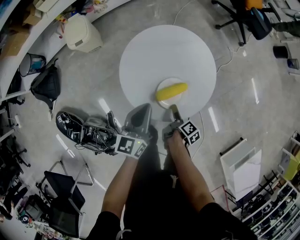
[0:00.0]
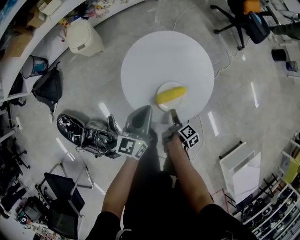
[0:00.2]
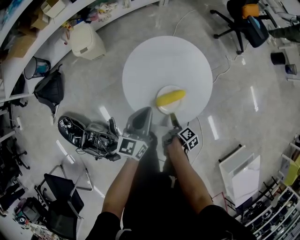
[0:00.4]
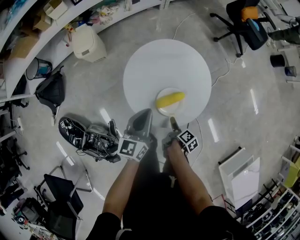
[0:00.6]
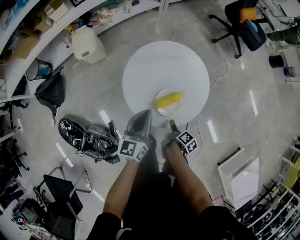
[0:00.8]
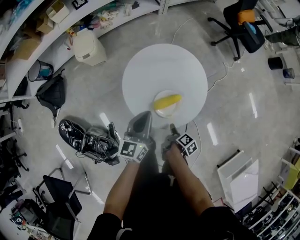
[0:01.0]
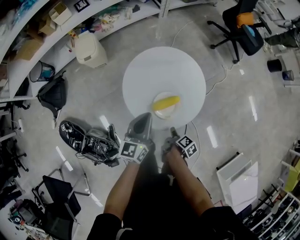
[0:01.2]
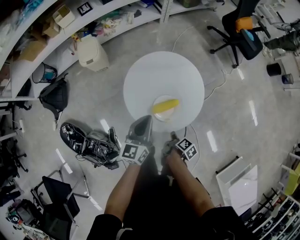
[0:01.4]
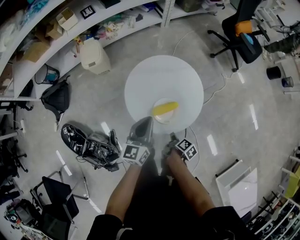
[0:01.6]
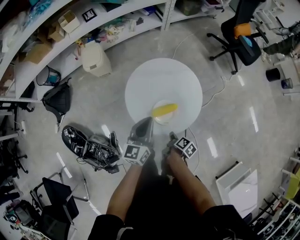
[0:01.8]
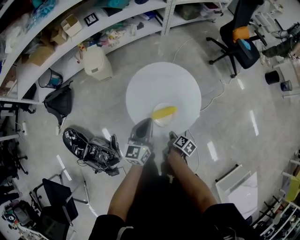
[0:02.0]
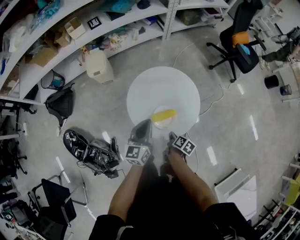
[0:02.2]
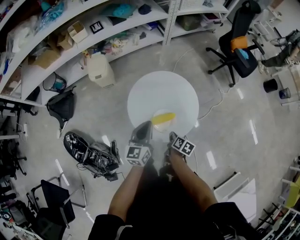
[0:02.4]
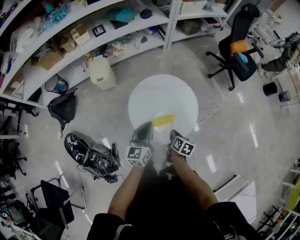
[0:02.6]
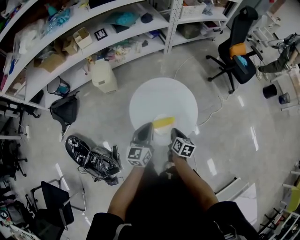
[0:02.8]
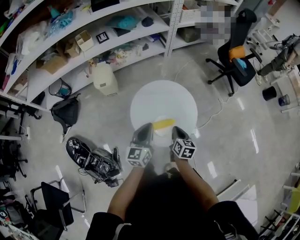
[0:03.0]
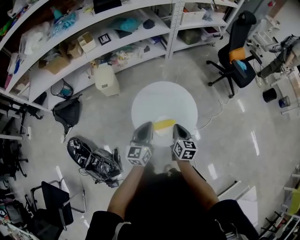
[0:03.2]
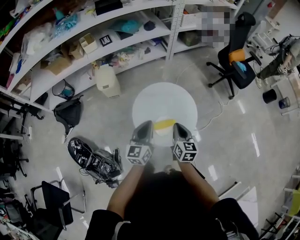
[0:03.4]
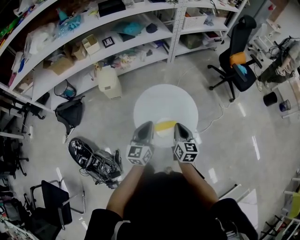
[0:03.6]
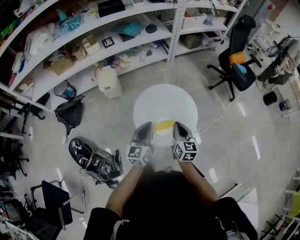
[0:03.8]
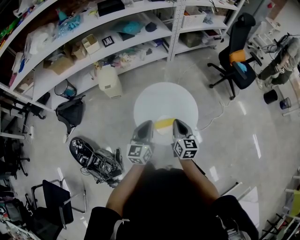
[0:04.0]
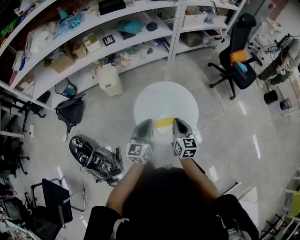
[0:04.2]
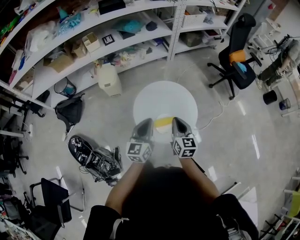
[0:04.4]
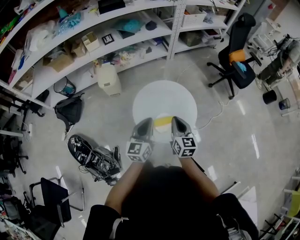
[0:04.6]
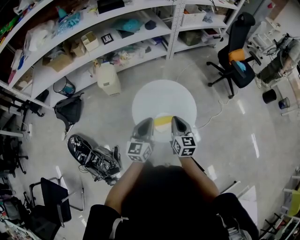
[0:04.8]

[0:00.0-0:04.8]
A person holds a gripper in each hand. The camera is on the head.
0:00.0 to 0:01.6: The left gripper is displaced upward by approximately 5 cm.
0:01.6 to 0:03.2: The left gripper moves upward, some 10 cm.

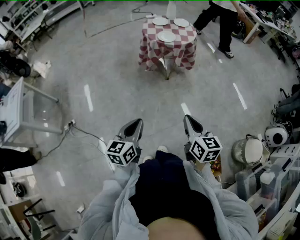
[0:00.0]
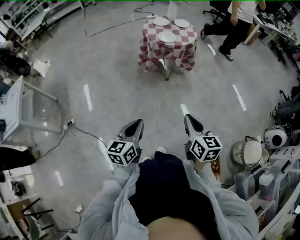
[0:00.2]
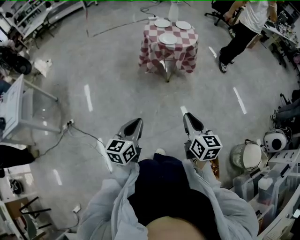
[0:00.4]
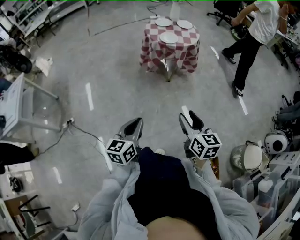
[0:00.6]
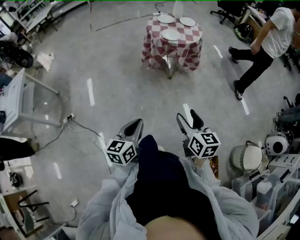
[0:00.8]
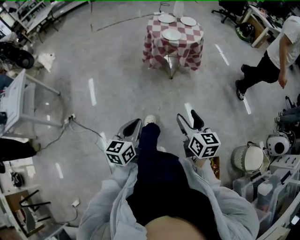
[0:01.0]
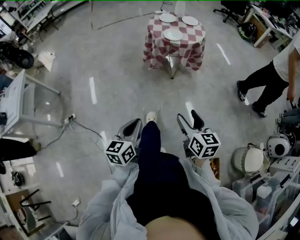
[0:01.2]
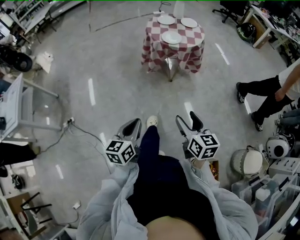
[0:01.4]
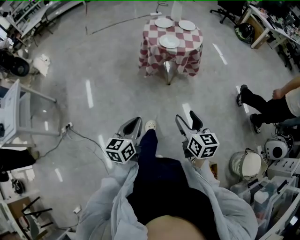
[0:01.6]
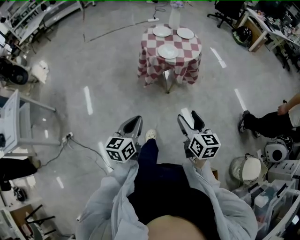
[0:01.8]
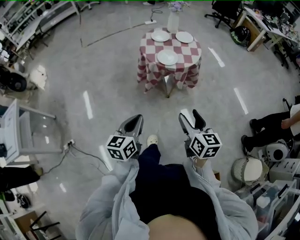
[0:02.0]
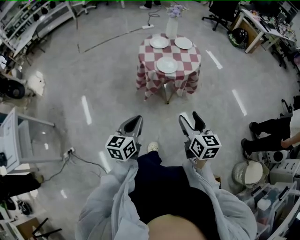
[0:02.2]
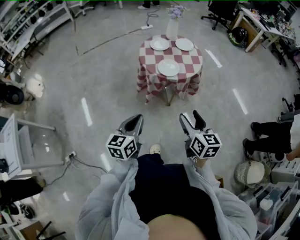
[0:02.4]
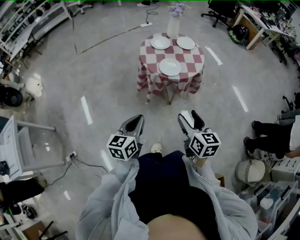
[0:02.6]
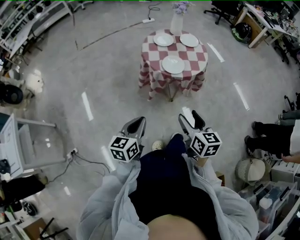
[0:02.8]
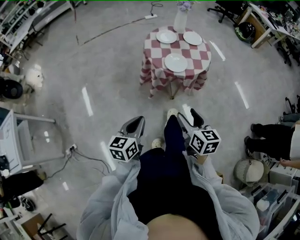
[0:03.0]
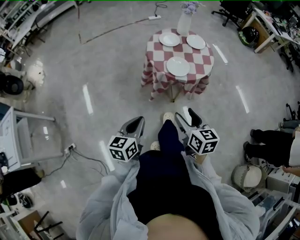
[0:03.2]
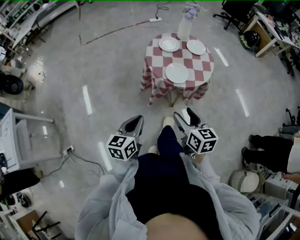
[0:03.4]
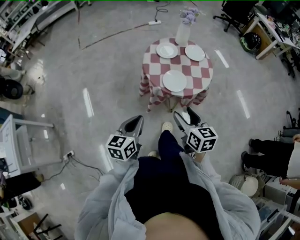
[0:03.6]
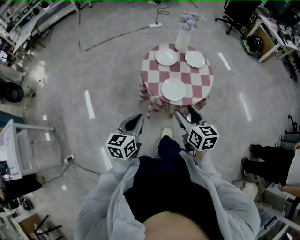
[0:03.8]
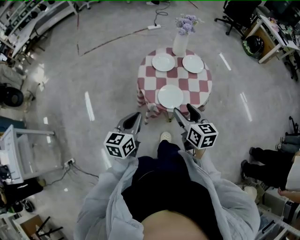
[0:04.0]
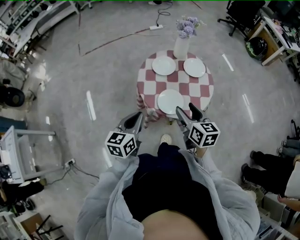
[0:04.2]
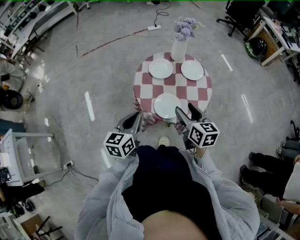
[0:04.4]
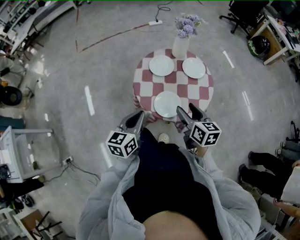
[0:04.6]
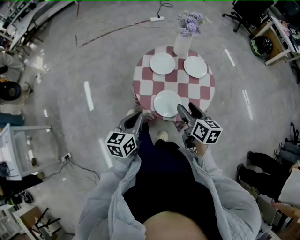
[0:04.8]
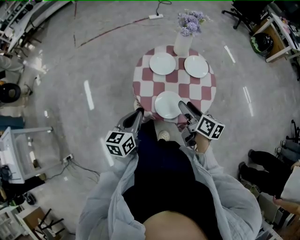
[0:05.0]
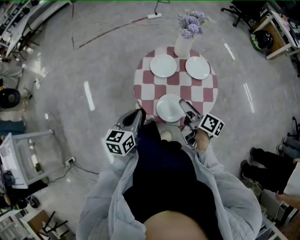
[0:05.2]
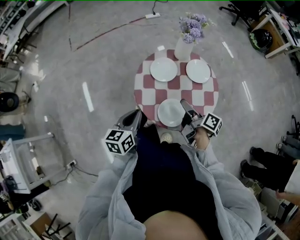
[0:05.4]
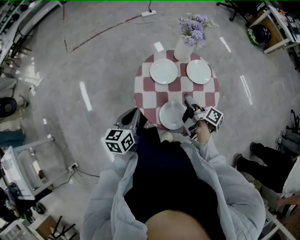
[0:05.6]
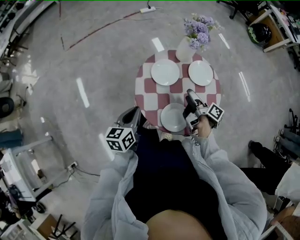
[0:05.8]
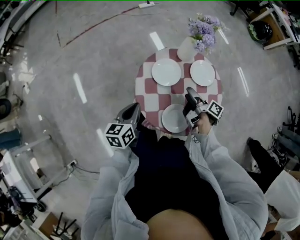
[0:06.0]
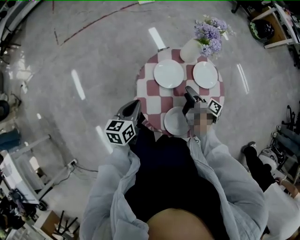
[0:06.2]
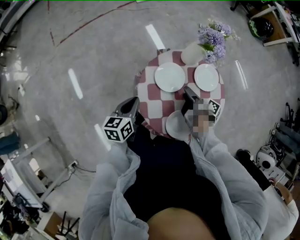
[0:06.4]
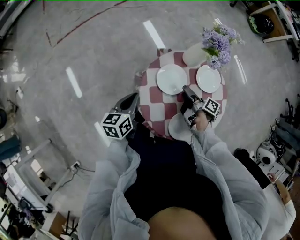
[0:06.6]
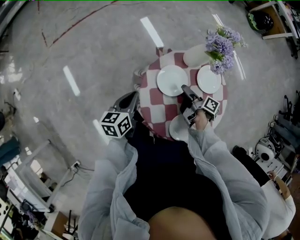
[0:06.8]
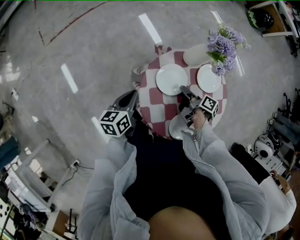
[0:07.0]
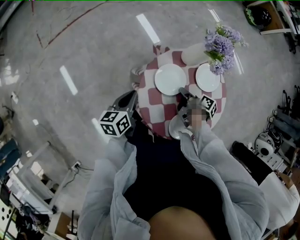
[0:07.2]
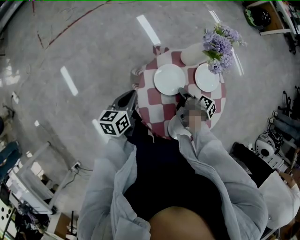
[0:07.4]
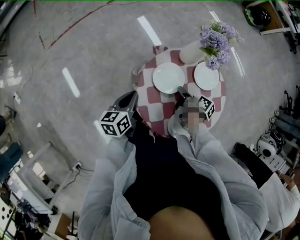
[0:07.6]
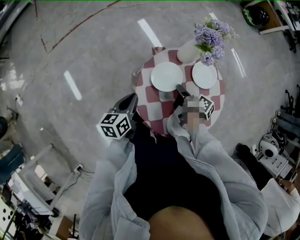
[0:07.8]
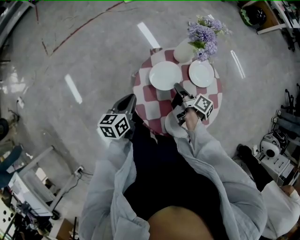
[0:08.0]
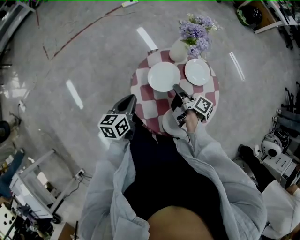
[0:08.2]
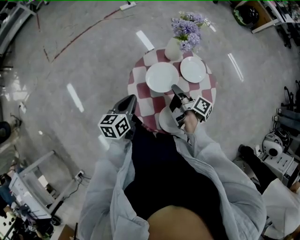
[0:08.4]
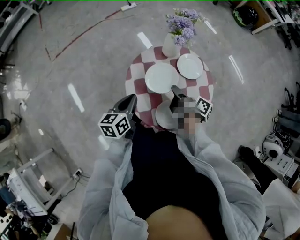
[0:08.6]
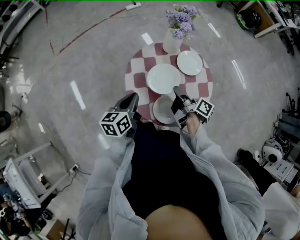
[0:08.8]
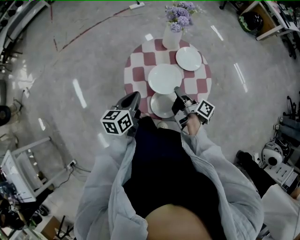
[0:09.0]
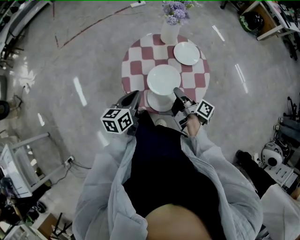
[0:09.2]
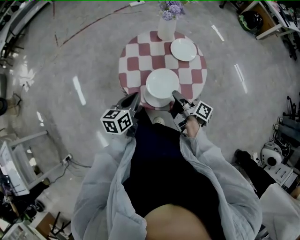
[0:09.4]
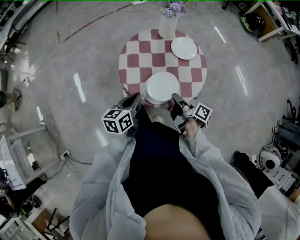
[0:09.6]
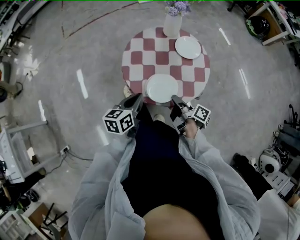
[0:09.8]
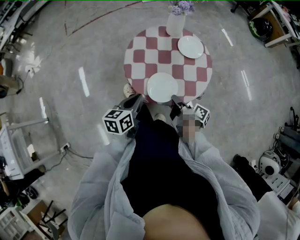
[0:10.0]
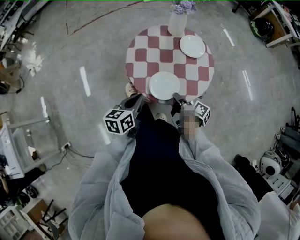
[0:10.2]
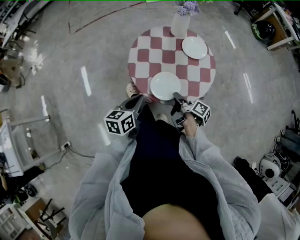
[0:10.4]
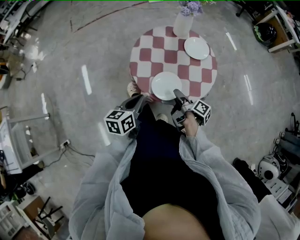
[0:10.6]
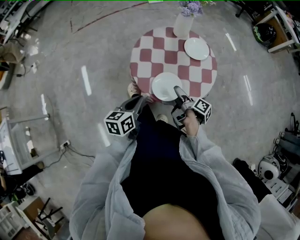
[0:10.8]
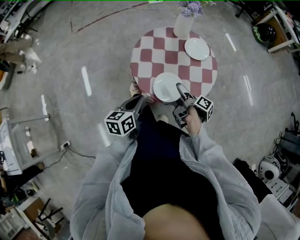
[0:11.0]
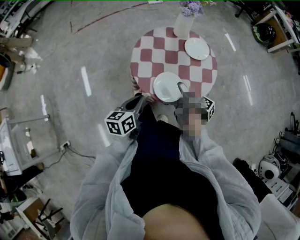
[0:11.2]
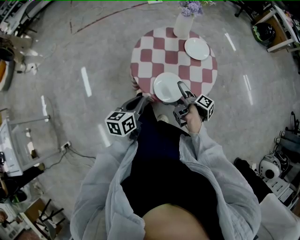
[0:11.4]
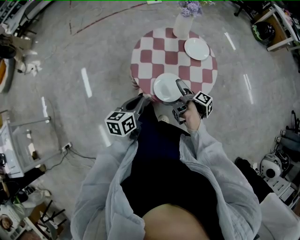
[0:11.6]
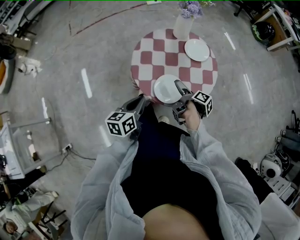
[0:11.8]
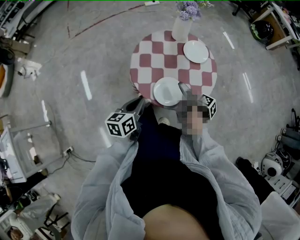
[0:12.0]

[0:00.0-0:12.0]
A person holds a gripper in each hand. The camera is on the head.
0:00.0 to 0:01.6: The left gripper ends up roughly 15 cm from where it was.
0:01.6 to 0:03.0: The left gripper shifts by about 25 cm.
0:03.0 to 0:04.4: The left gripper moves roughly 30 cm.
0:04.4 to 0:06.0: The left gripper moves approximately 20 cm.
0:06.0 to 0:07.6: The left gripper shifts by roughly 10 cm.
0:07.6 to 0:09.0: The left gripper shifts by about 15 cm.
0:09.0 to 0:10.4: The left gripper moves approximately 10 cm.

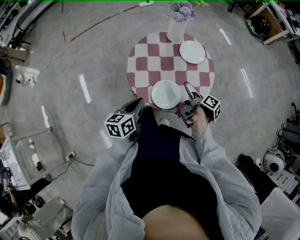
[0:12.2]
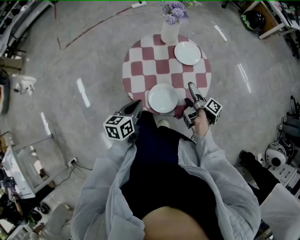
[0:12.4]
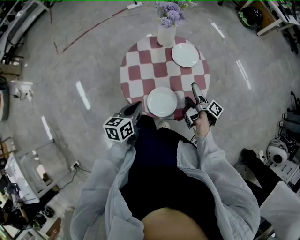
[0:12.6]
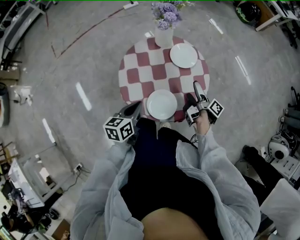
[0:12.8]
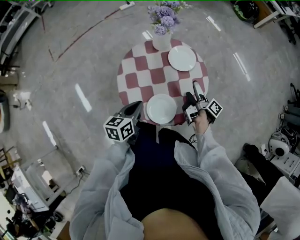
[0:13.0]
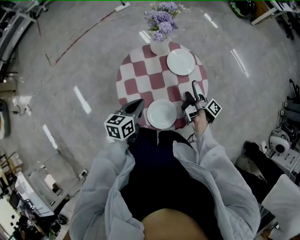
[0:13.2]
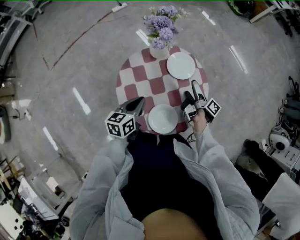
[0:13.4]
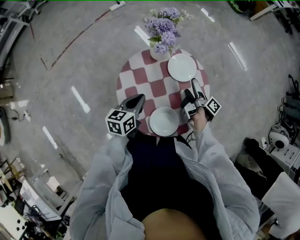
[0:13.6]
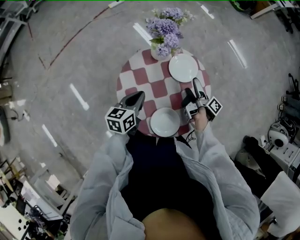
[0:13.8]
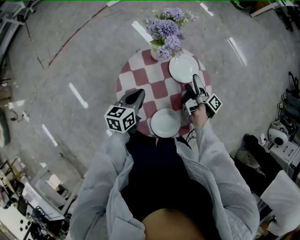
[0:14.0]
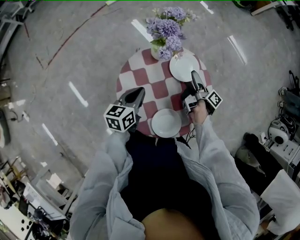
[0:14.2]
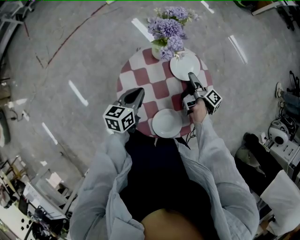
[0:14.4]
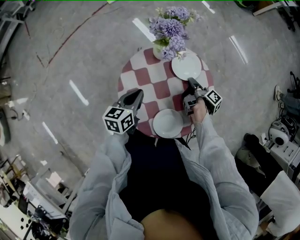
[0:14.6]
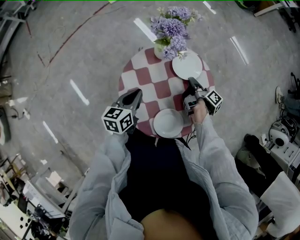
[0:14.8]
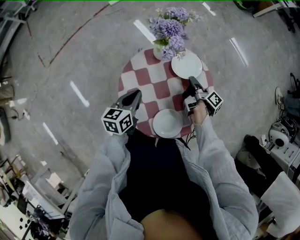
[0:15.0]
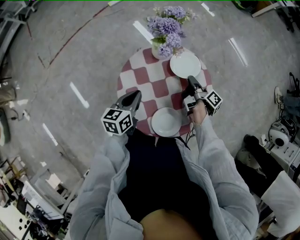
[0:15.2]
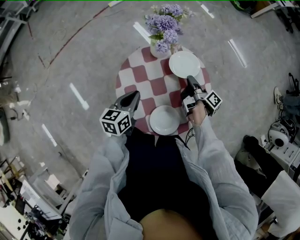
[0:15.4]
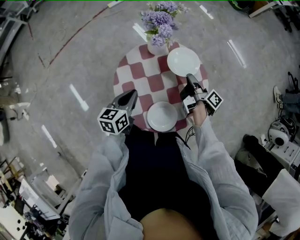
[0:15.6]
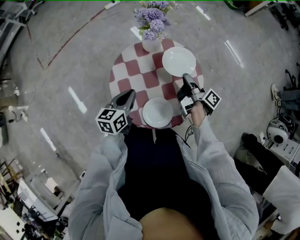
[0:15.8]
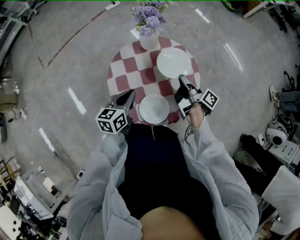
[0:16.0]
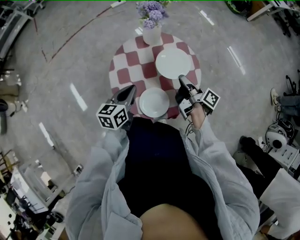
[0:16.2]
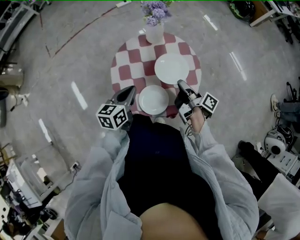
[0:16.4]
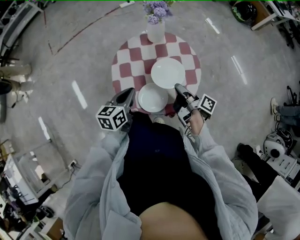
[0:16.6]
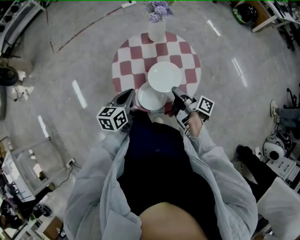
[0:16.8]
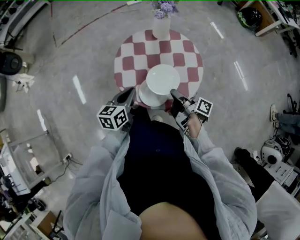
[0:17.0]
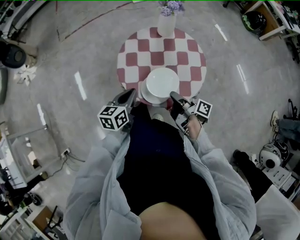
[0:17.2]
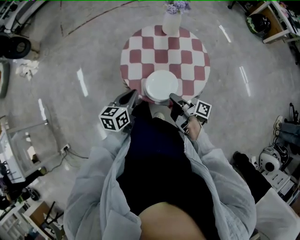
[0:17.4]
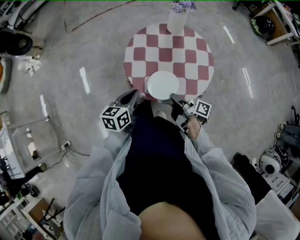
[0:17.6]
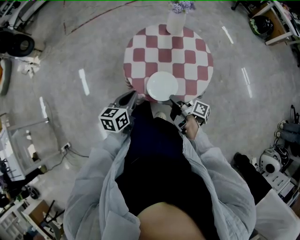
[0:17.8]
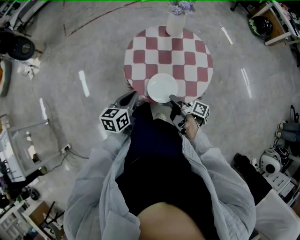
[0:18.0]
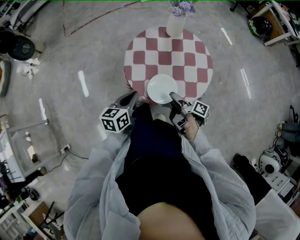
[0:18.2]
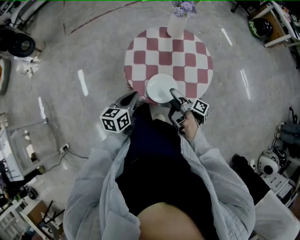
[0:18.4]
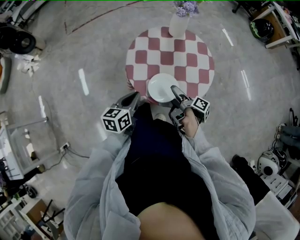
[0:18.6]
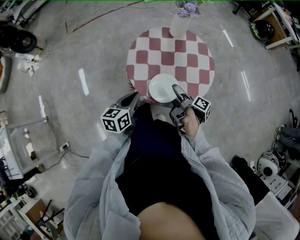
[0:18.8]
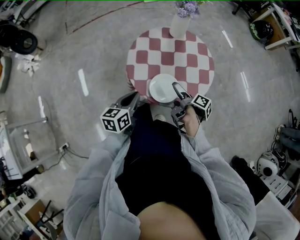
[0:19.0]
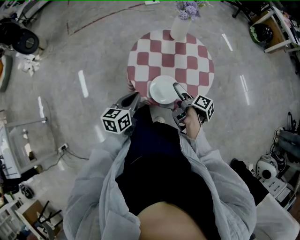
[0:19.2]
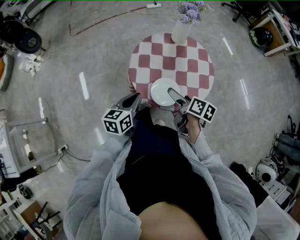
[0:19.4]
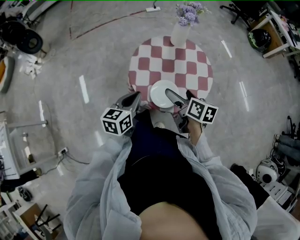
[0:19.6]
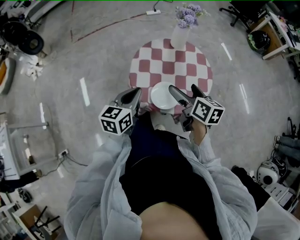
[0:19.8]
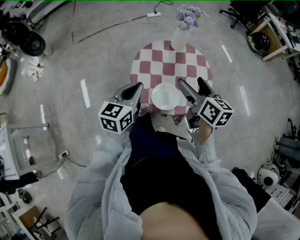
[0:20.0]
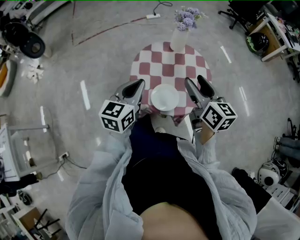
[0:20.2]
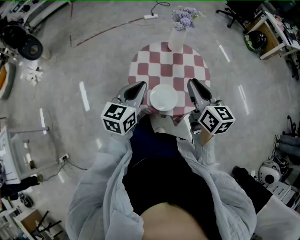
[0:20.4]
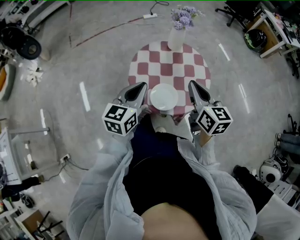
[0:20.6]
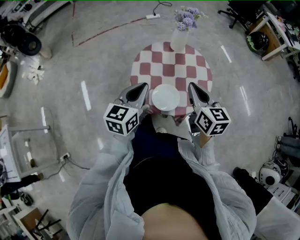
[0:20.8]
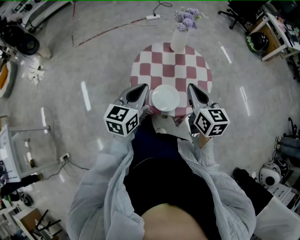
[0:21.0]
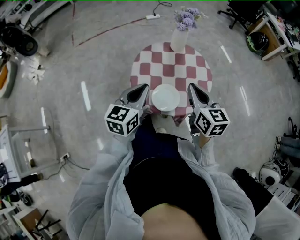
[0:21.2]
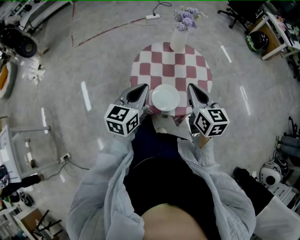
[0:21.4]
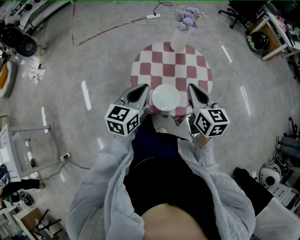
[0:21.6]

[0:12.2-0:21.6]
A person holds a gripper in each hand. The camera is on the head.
0:12.2 to 0:13.8: The left gripper ends up some 20 cm from where it was.
0:15.4 to 0:17.0: The left gripper ends up approximately 15 cm from where it was.
0:17.0 to 0:18.4: The left gripper ends up roughly 5 cm from where it was.
0:18.4 to 0:20.0: The left gripper heads upward, covering some 15 cm.
